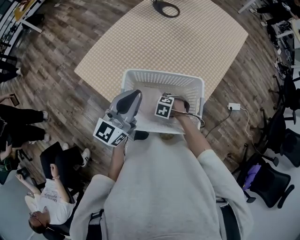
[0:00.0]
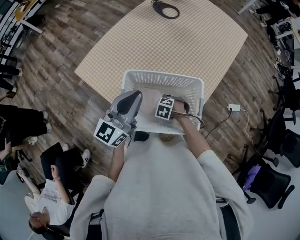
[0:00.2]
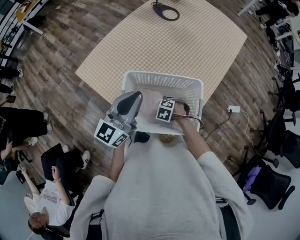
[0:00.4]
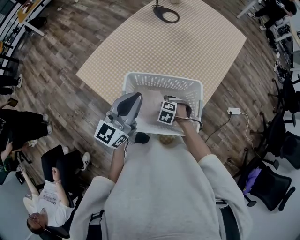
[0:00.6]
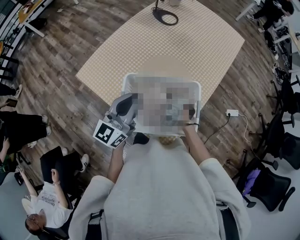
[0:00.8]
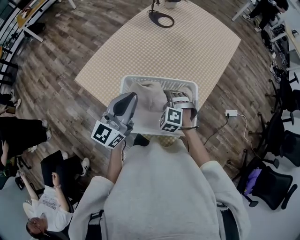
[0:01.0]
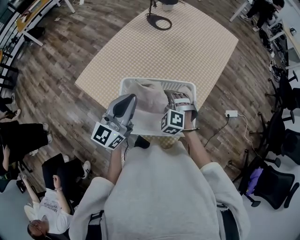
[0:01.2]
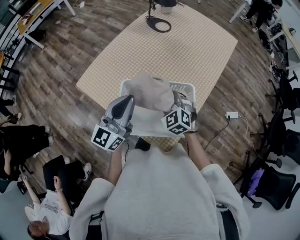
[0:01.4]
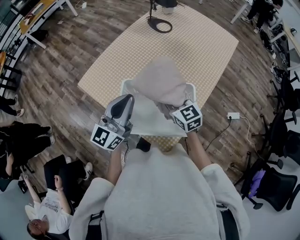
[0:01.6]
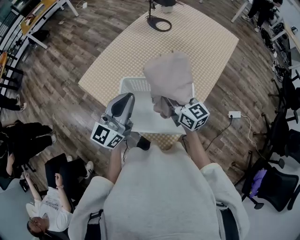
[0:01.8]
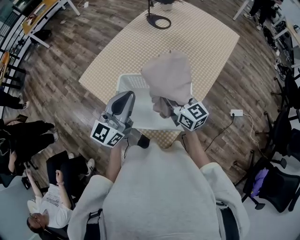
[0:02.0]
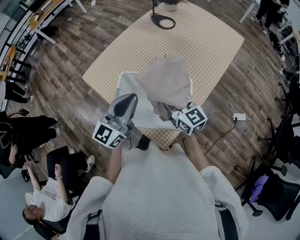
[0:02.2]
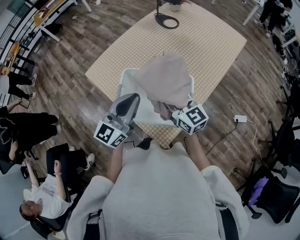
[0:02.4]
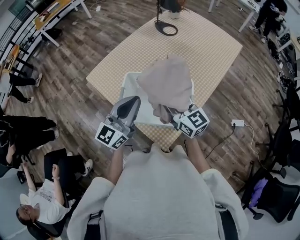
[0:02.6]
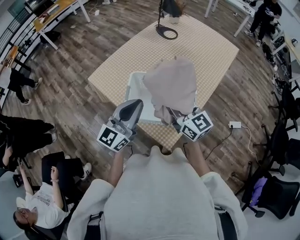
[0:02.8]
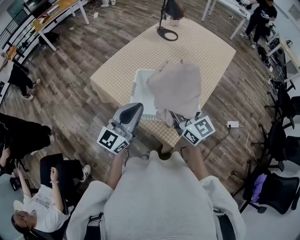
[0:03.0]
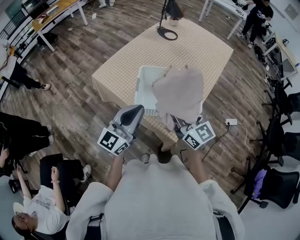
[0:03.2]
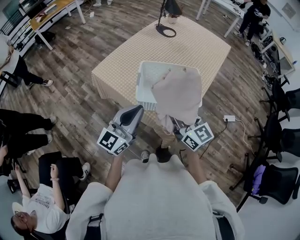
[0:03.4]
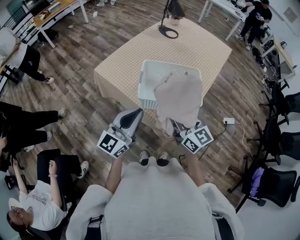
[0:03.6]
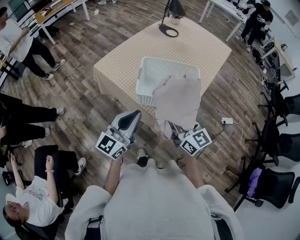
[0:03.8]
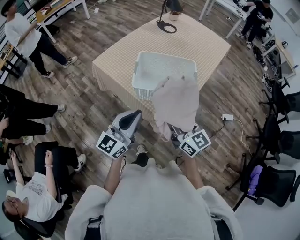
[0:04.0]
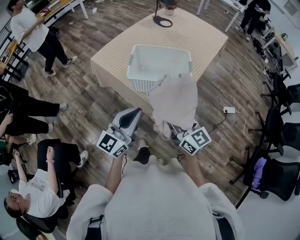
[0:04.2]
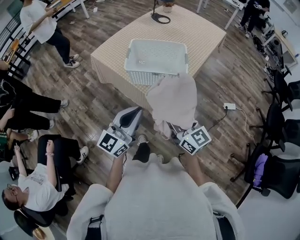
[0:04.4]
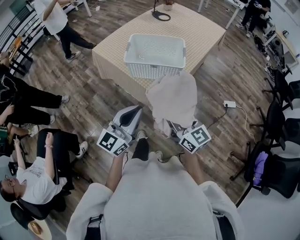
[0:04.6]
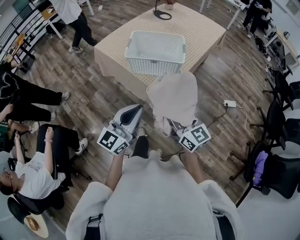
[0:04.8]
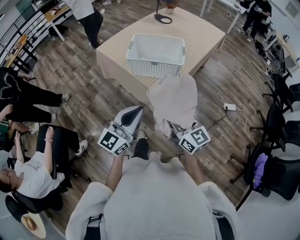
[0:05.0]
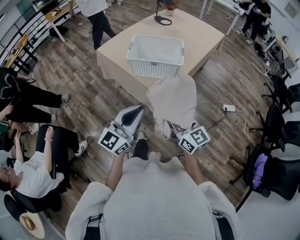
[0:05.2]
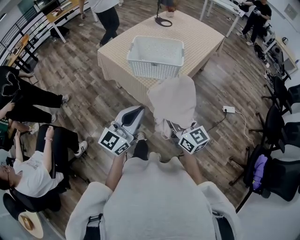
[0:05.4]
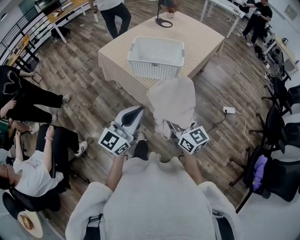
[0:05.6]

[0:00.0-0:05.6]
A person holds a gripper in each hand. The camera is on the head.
0:00.0 to 0:01.4: The right gripper shifts roughly 25 cm upward, and points its fingers roughly 50 degrees further upward.
0:01.4 to 0:02.8: The right gripper heads upward and backward, covering approximately 20 cm, and tilts its fingers roughly 40 degrees upward. The left gripper is displaced backward by roughly 10 cm.
0:02.8 to 0:04.2: The grippers both shift backward by some 25 cm.
0:04.2 to 0:05.6: Both grippers travel together backward, about 15 cm.

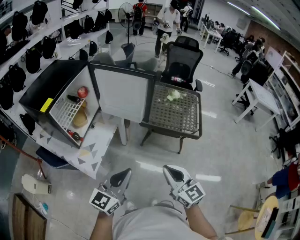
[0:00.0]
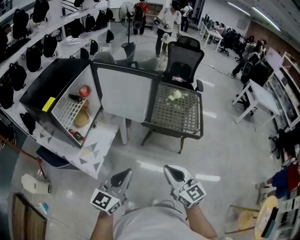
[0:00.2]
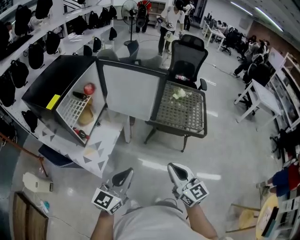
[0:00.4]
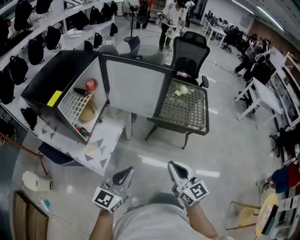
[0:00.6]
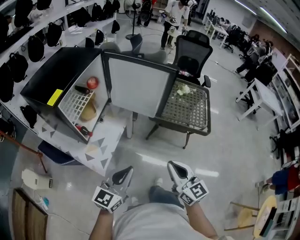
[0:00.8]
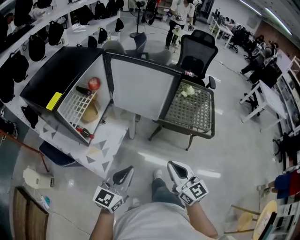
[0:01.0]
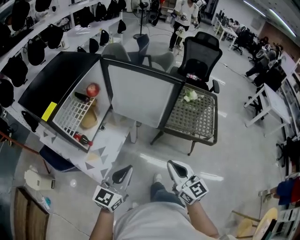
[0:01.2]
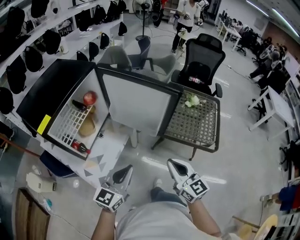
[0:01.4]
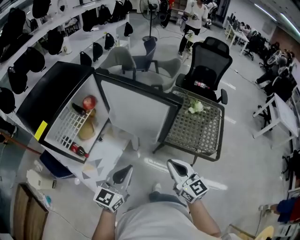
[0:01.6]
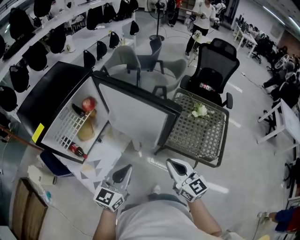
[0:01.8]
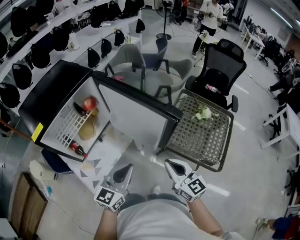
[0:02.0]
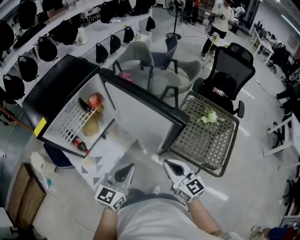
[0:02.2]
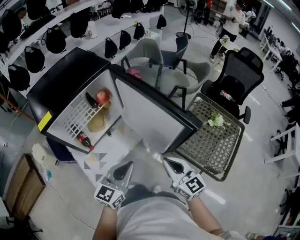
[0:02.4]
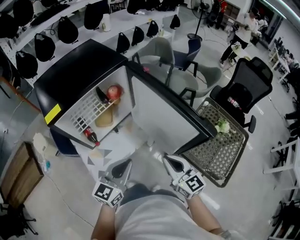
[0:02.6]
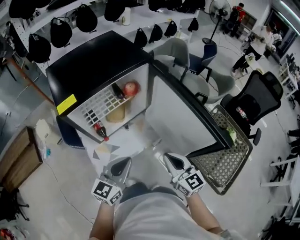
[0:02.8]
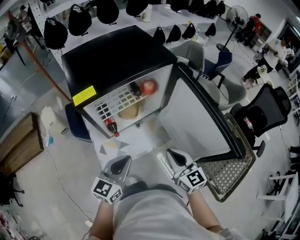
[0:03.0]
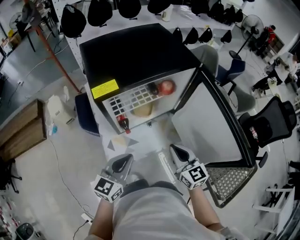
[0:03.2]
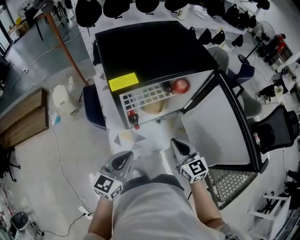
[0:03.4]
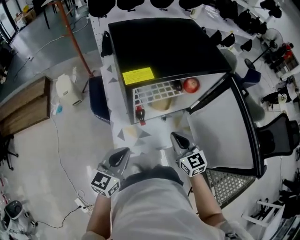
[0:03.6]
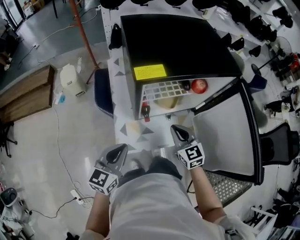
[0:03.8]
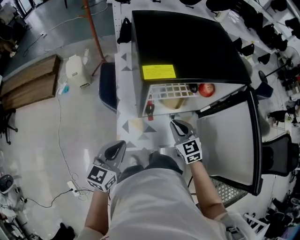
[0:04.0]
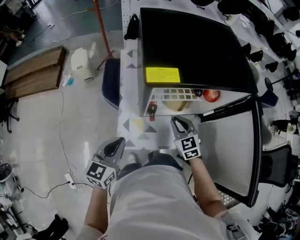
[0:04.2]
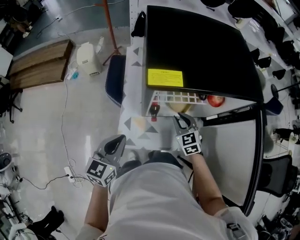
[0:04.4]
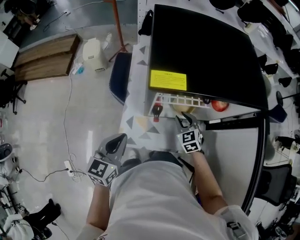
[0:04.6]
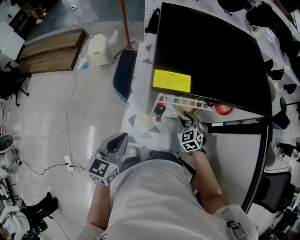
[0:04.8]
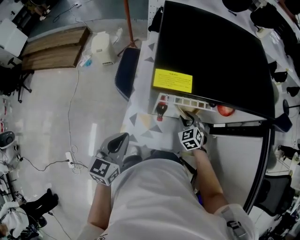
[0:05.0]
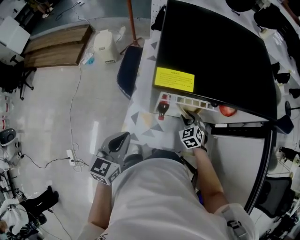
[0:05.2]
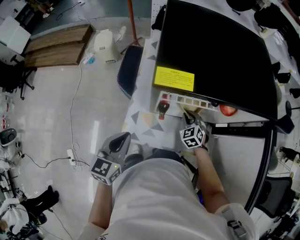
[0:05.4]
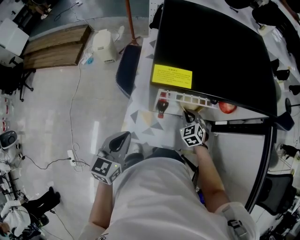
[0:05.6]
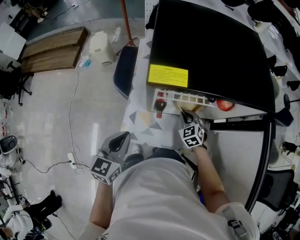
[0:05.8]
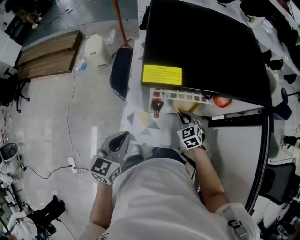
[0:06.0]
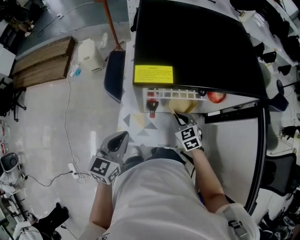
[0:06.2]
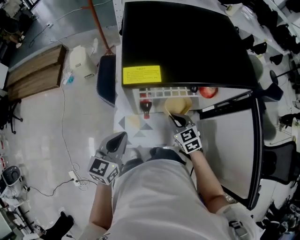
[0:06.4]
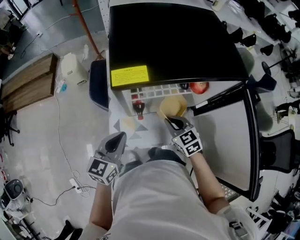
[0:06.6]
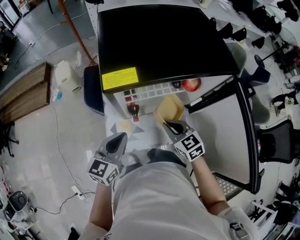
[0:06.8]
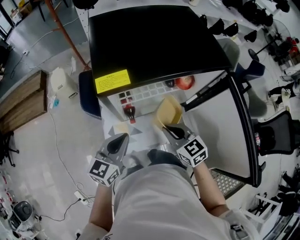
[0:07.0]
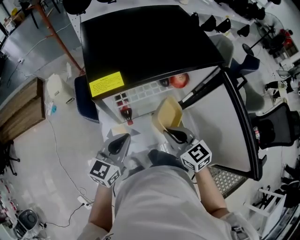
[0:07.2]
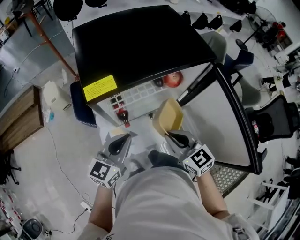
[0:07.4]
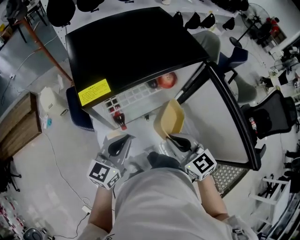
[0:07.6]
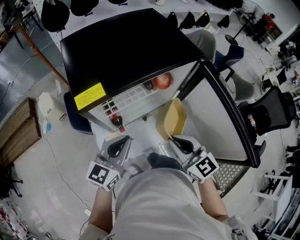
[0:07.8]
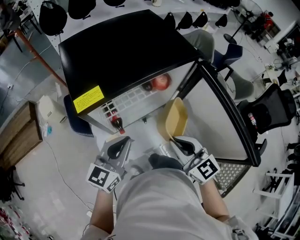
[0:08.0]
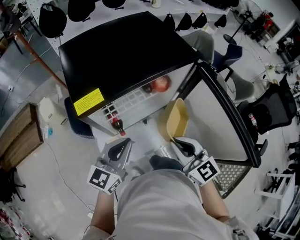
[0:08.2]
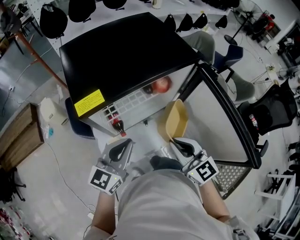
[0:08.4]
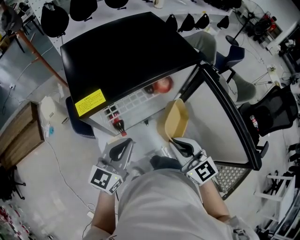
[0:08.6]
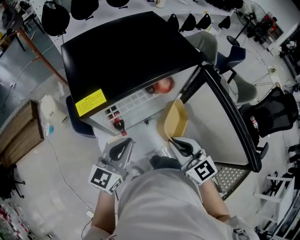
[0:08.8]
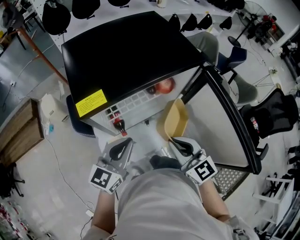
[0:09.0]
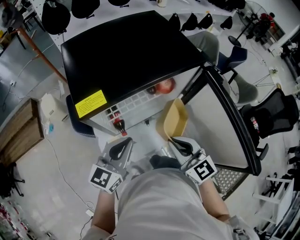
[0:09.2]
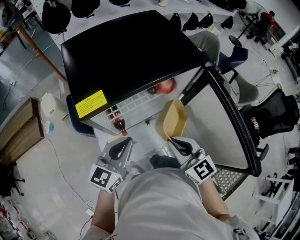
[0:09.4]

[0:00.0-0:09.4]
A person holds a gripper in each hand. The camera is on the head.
0:00.0 to 0:01.6: Both grippers travel together forward, approximately 25 cm.
0:01.6 to 0:03.2: The right gripper changes place by roughly 25 cm, and turns by about 40 degrees, while the left gripper shifts by some 20 cm, and changes its angle by about 40 degrees.
0:03.2 to 0:04.8: The right gripper goes approximately 30 cm forward and downward, rotates about 50 degrees, and opens its fingers. Meanwhile the left gripper heads to the left, covering about 10 cm, and rotates roughly 40 degrees.
0:04.8 to 0:06.2: The right gripper closes up.
0:06.2 to 0:07.8: The right gripper travels upward and backward by approximately 25 cm, and rotates roughly 30 degrees. The left gripper goes roughly 15 cm to the right and upward, and changes its angle by approximately 30 degrees.
0:07.8 to 0:09.4: There are only small adjustments of the grippers.

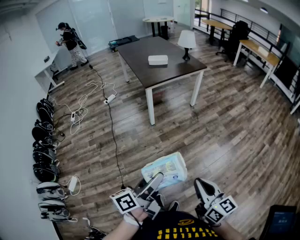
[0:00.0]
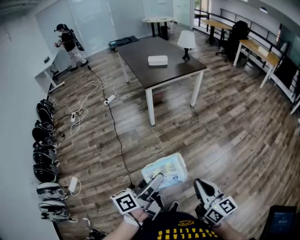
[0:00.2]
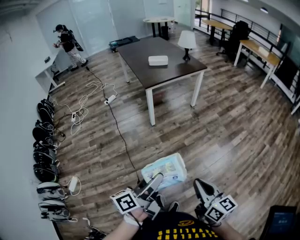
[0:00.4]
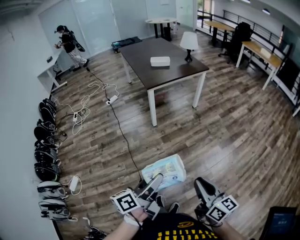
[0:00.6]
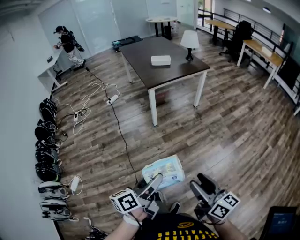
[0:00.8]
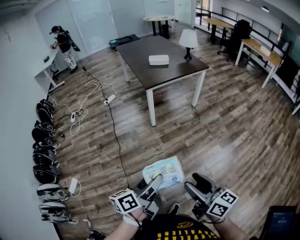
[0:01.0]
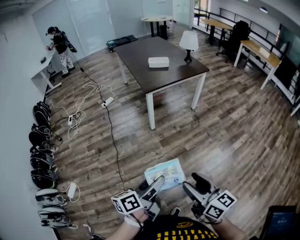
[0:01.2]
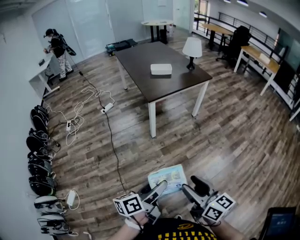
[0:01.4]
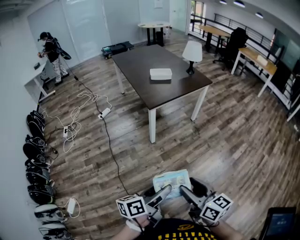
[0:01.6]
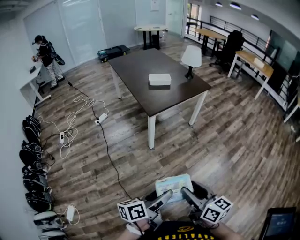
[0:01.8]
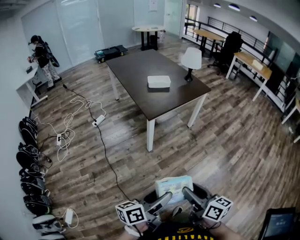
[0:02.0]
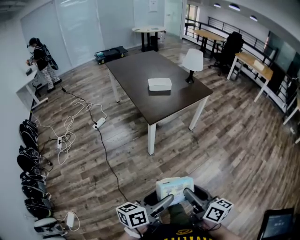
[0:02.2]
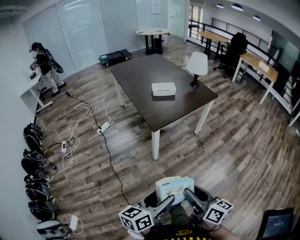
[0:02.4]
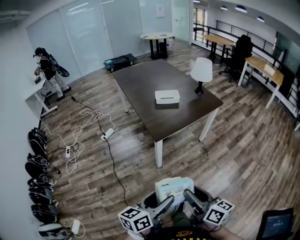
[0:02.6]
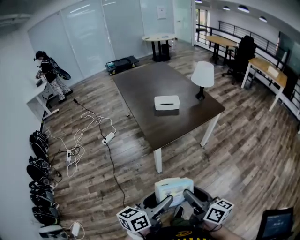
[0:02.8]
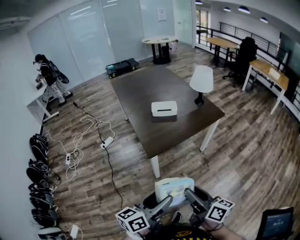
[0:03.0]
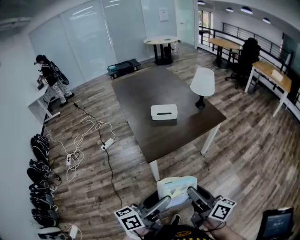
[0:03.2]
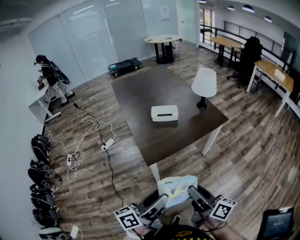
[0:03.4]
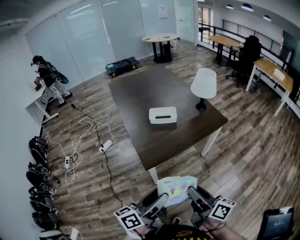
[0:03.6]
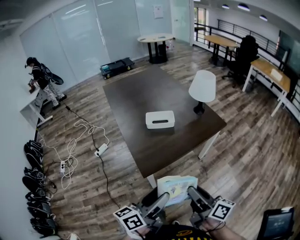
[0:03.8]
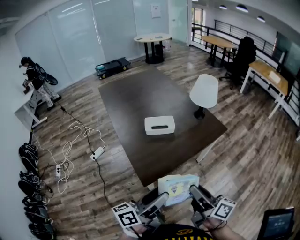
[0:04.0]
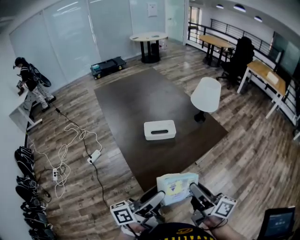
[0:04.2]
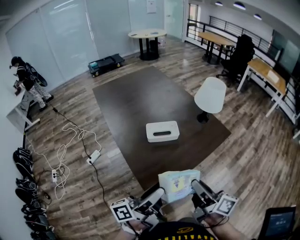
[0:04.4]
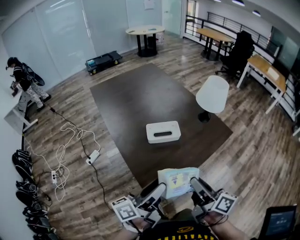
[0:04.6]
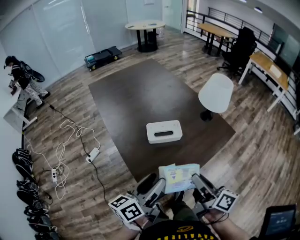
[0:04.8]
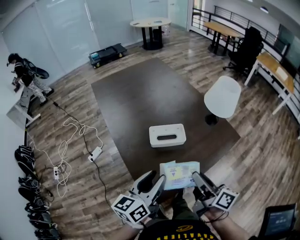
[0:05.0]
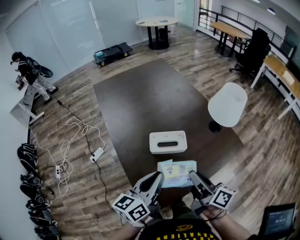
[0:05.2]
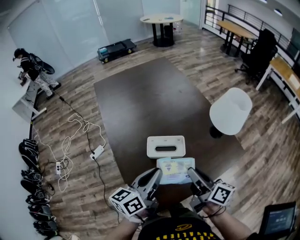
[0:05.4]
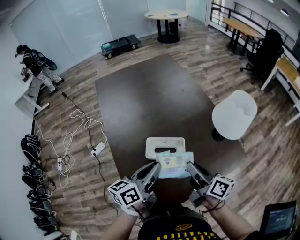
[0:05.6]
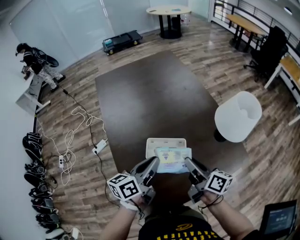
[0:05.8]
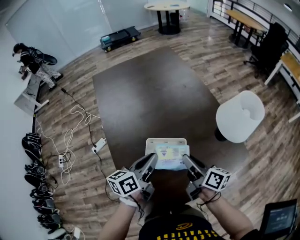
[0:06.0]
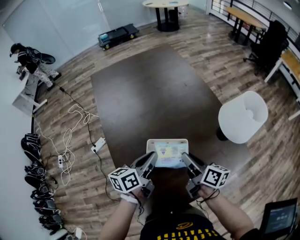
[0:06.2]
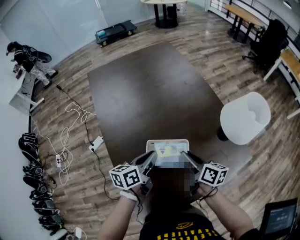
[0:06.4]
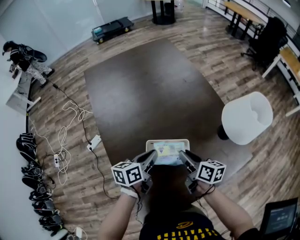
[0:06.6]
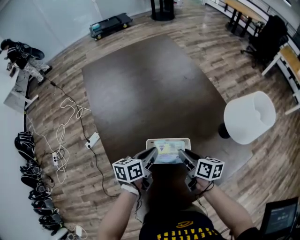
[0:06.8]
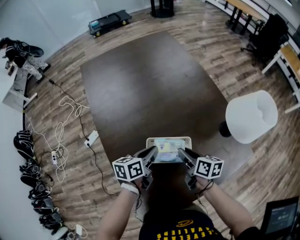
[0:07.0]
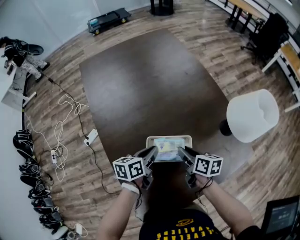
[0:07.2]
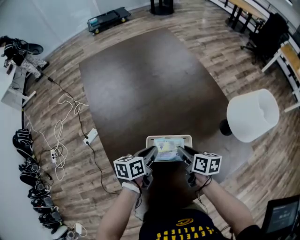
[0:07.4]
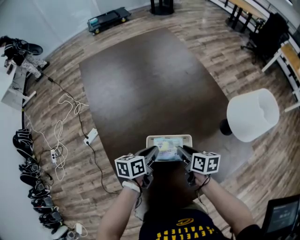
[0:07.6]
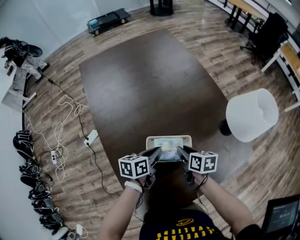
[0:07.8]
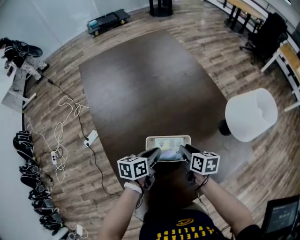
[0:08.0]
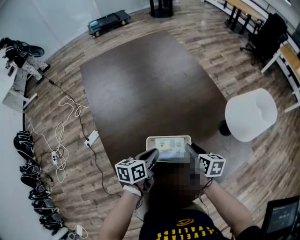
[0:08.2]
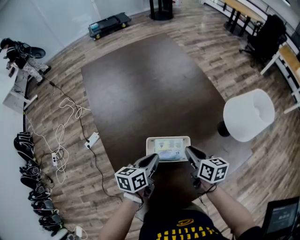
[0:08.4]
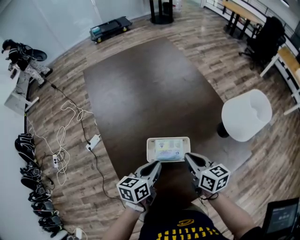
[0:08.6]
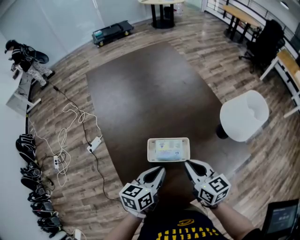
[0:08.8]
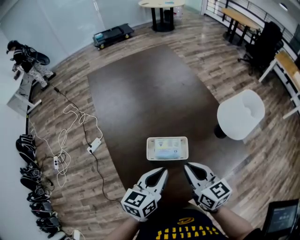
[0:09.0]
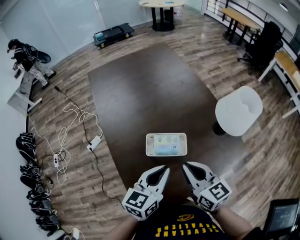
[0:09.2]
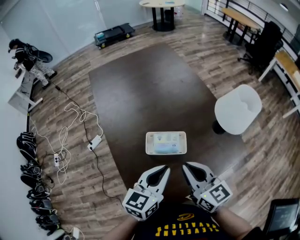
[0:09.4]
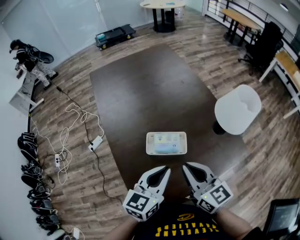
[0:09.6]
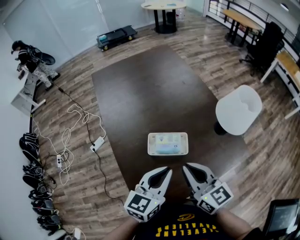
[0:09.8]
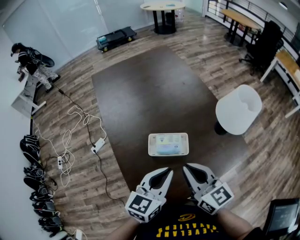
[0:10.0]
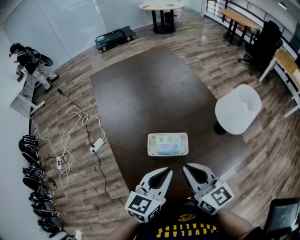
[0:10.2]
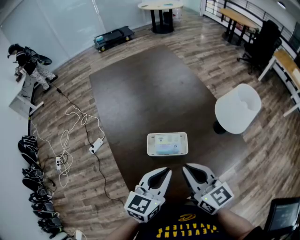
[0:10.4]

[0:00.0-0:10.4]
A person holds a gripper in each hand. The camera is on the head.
0:00.0 to 0:01.4: The left gripper travels forward and downward by about 15 cm. Meanwhile the right gripper goes some 20 cm forward and to the left, and opens.
0:01.4 to 0:03.0: Both grippers travel together forward, about 35 cm. The left gripper rotates roughly 20 degrees.
0:03.0 to 0:04.4: Both grippers move forward, about 30 cm. The left gripper swivels about 30 degrees.
0:04.4 to 0:06.0: Both grippers move forward, some 35 cm. The left gripper tilts its fingers some 30 degrees downward, and closes.
0:06.0 to 0:07.4: The two grippers go approximately 15 cm downward. The right gripper swivels about 30 degrees.
0:07.4 to 0:09.0: The two grippers go roughly 20 cm upward and backward. The left gripper rotates about 30 degrees. The right gripper rotates some 30 degrees, and closes up.
0:09.0 to 0:10.4: The right gripper heads upward, covering some 5 cm.
